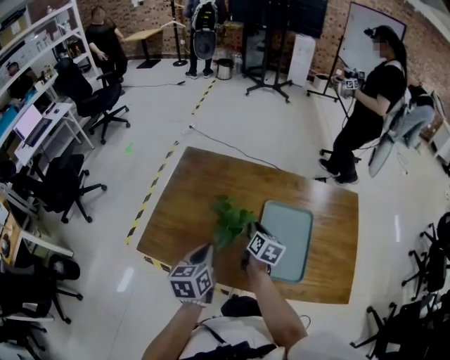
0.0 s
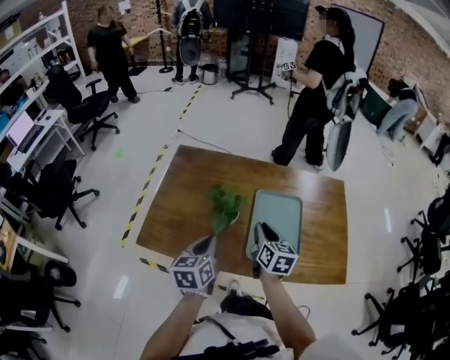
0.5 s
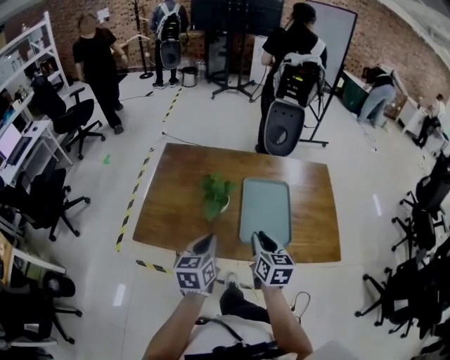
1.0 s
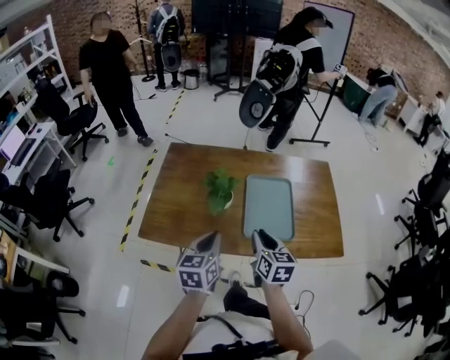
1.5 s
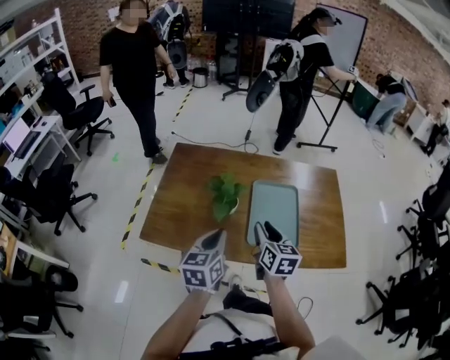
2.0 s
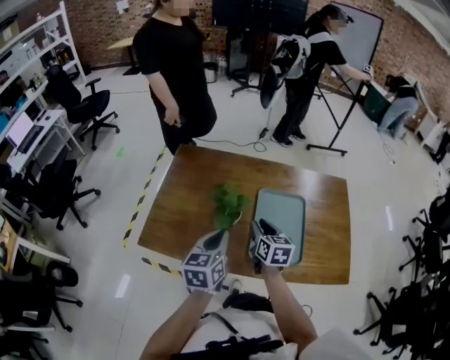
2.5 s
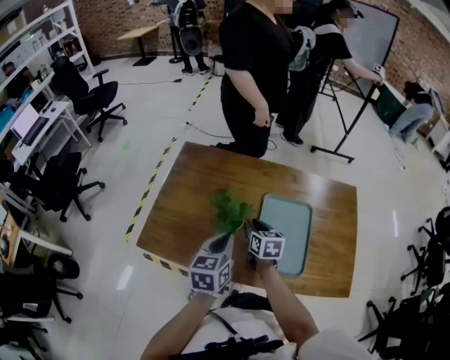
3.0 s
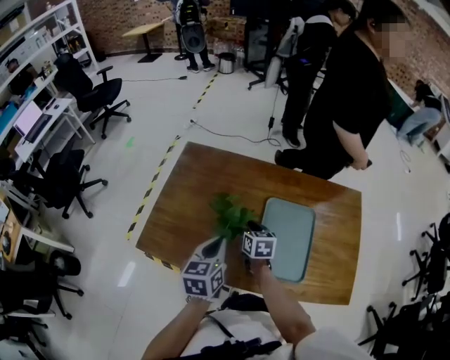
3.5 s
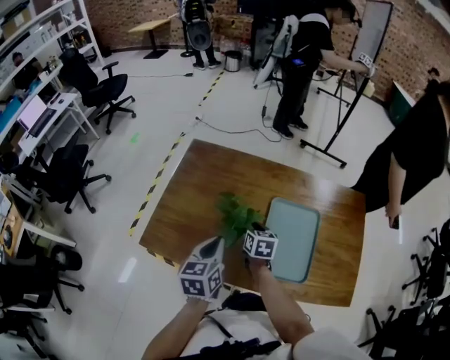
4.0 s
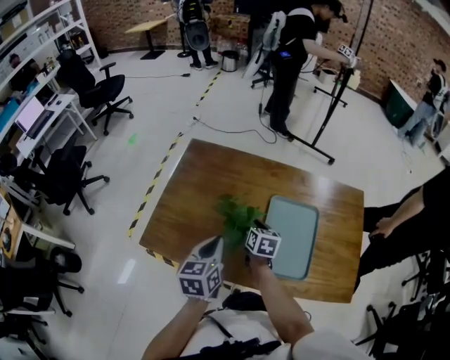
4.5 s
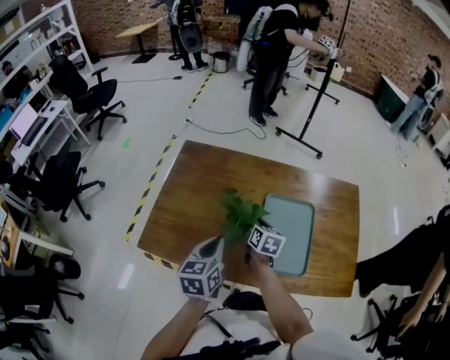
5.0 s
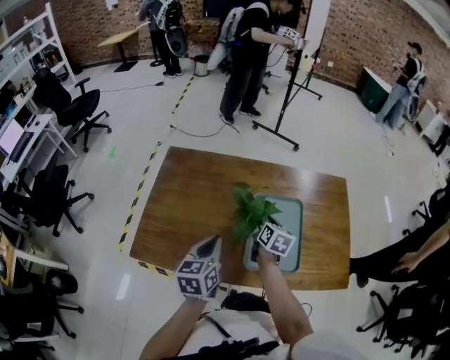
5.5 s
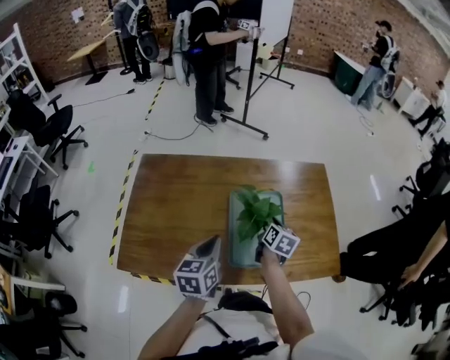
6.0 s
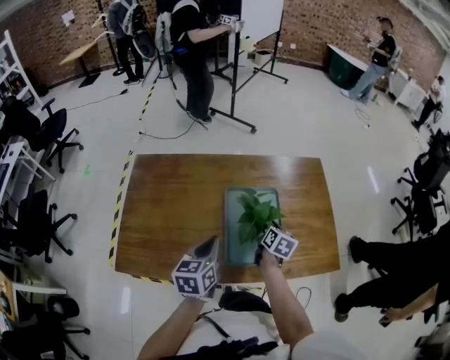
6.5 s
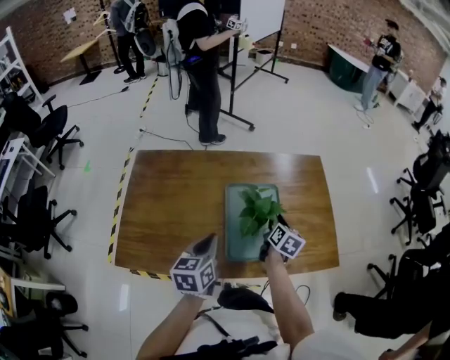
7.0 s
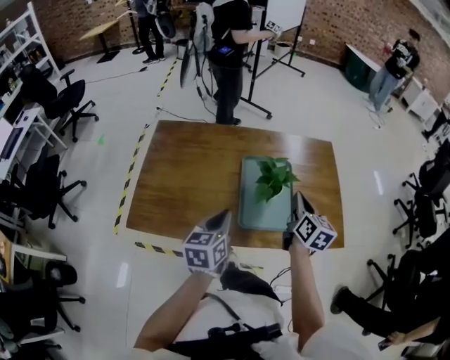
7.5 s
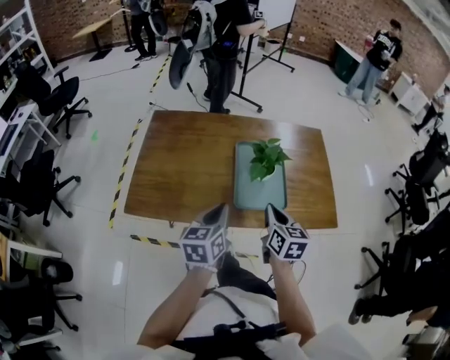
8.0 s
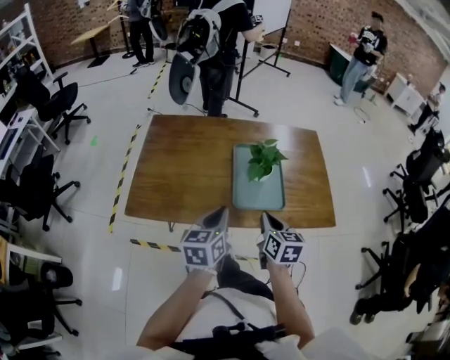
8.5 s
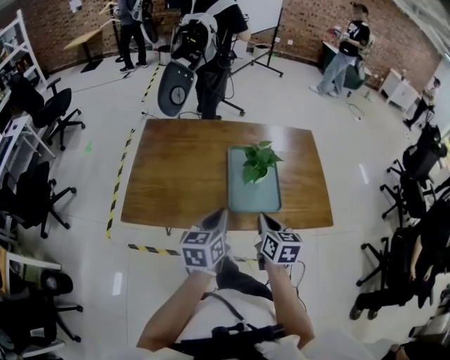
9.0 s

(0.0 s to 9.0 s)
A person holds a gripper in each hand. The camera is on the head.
0.0 s - 2.0 s: The left gripper heads backward, upward and to the right, covering about 10 cm. Meanwhile the right gripper heads backward and upward, covering about 20 cm.
2.0 s - 4.5 s: The right gripper moves forward and downward, approximately 25 cm, and closes up, while the left gripper shifts some 10 cm forward and downward.
4.5 s - 7.0 s: The right gripper heads to the right, covering roughly 25 cm, rotates roughly 30 degrees, and opens; the left gripper goes roughly 10 cm to the right.
7.0 s - 9.0 s: The right gripper goes approximately 25 cm backward, rotates approximately 30 degrees, and closes. The left gripper shifts approximately 15 cm backward.

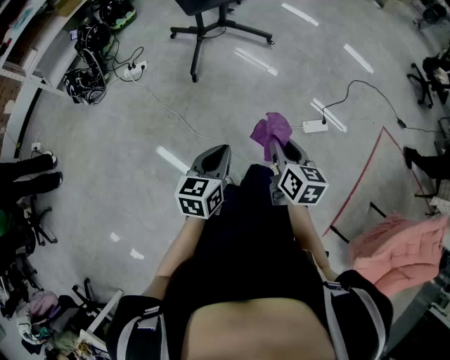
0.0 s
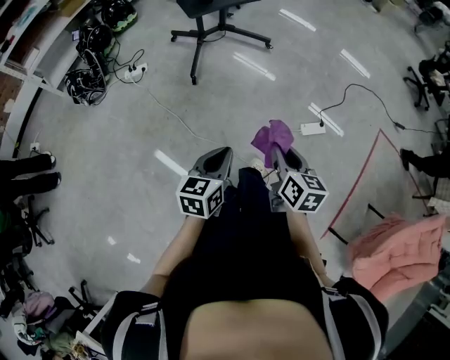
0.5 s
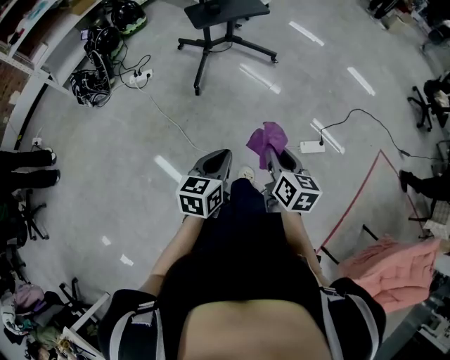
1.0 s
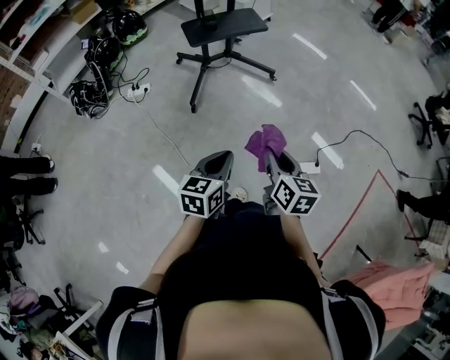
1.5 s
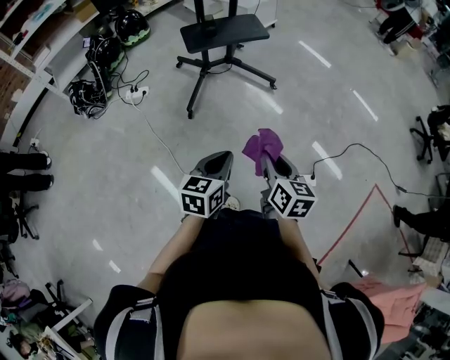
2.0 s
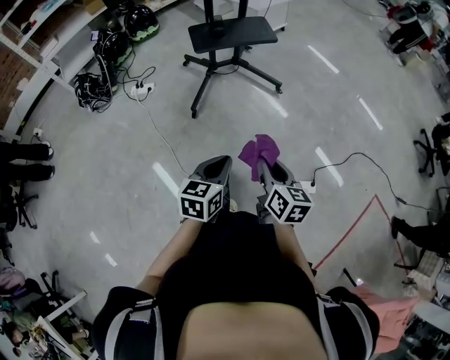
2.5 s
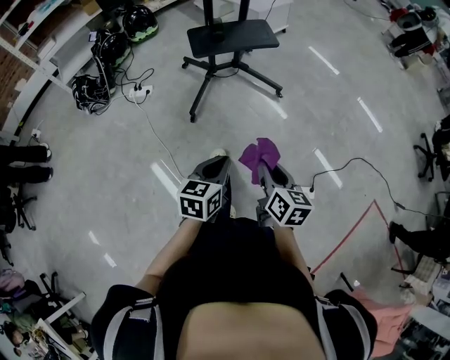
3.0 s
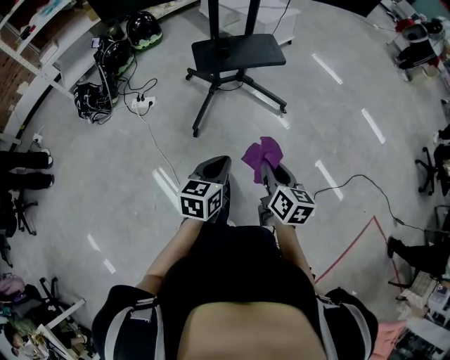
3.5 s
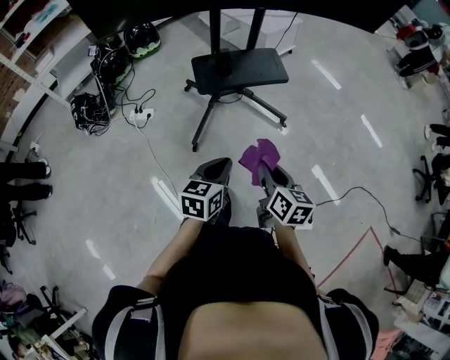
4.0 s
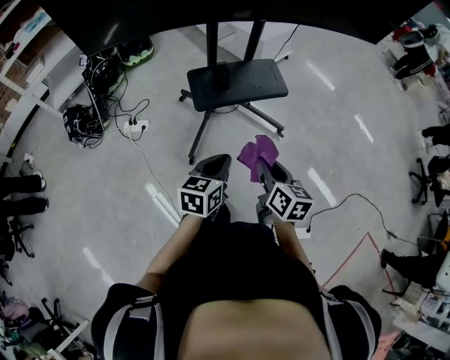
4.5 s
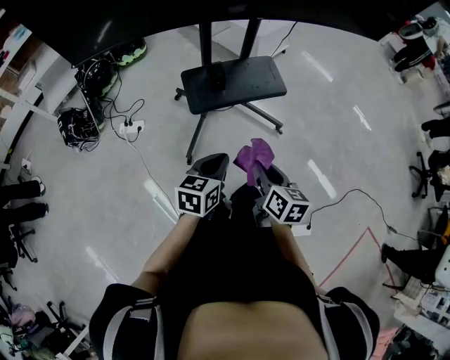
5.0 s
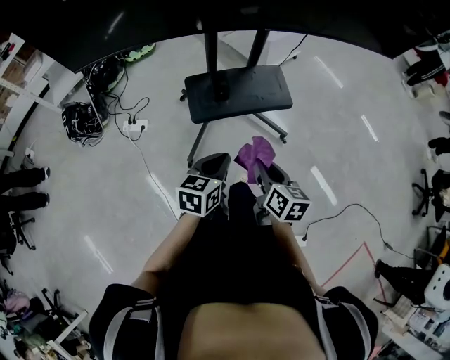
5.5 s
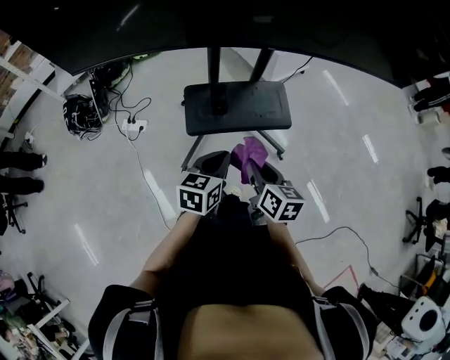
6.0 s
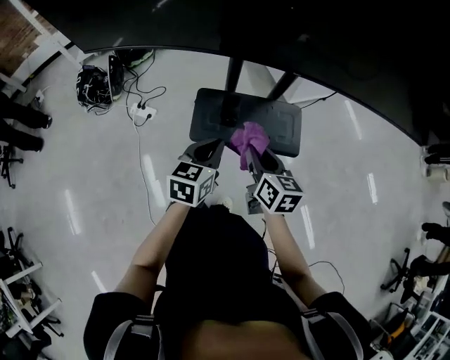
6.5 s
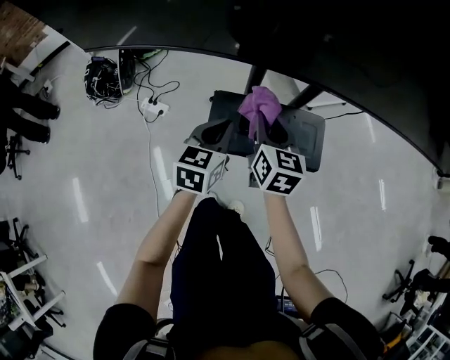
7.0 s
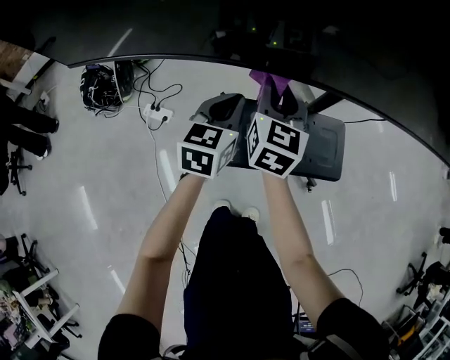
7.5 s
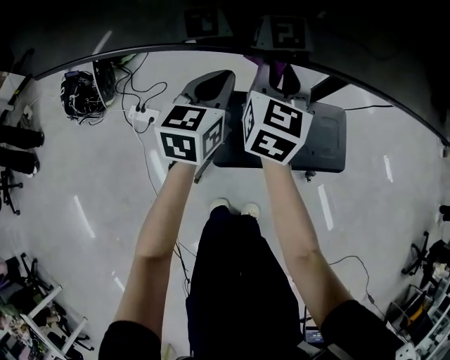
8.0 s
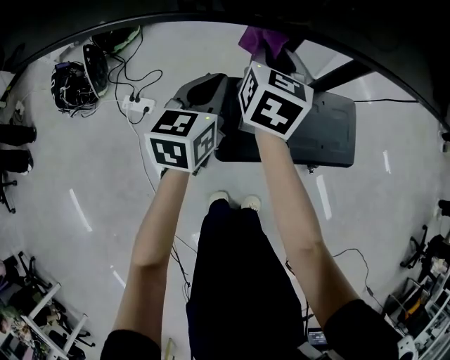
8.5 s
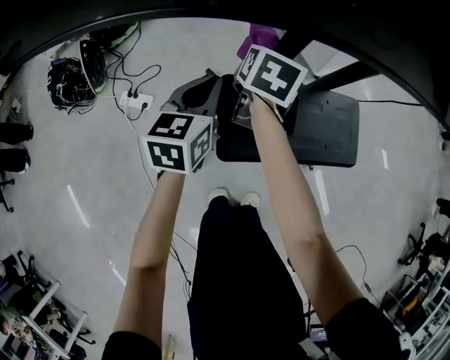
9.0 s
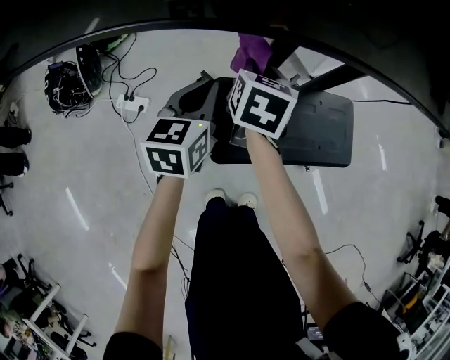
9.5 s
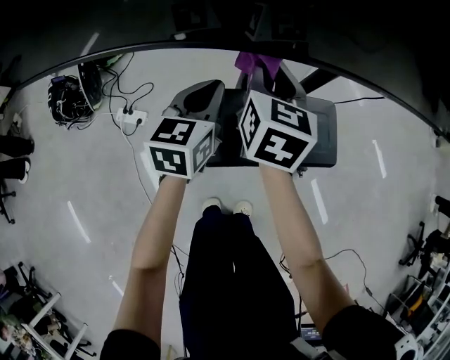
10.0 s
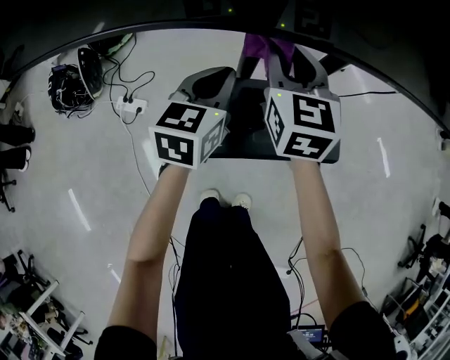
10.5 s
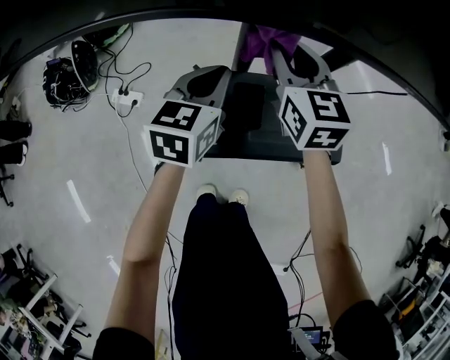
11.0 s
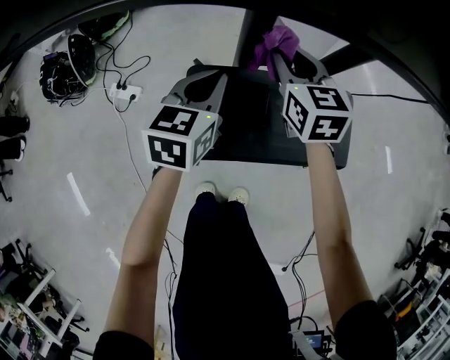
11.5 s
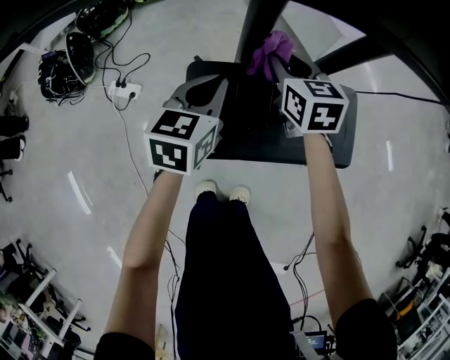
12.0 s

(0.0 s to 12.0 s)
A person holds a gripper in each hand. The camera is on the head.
0.0 s - 2.0 s: Both grippers travel together forward, roughly 20 cm.
2.0 s - 4.0 s: The grippers both shift forward by some 25 cm.
4.0 s - 6.0 s: The two grippers go about 30 cm forward.
6.0 s - 8.0 s: Both grippers move forward and to the left, about 40 cm. The right gripper rotates about 40 degrees; the left gripper swivels approximately 20 degrees.
8.0 s - 10.0 s: The left gripper goes downward and returns, roughly 10 cm each way. Meanwhile the right gripper reaches approximately 15 cm downward, then returns.
10.0 s - 12.0 s: The two grippers go about 15 cm downward. The right gripper rotates some 30 degrees.

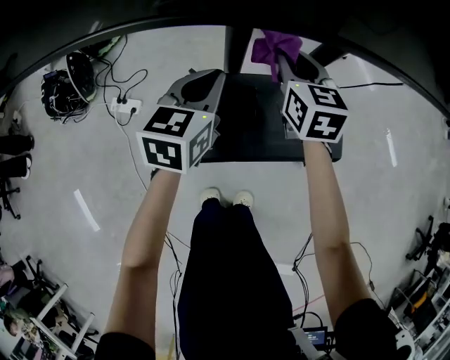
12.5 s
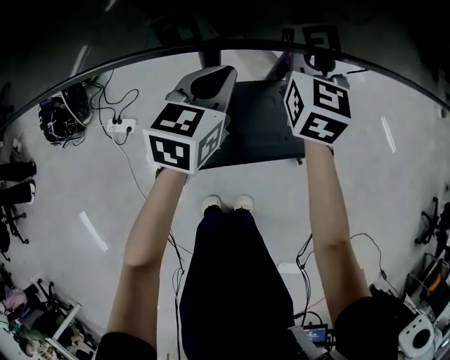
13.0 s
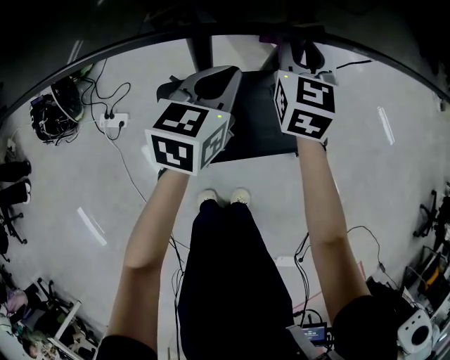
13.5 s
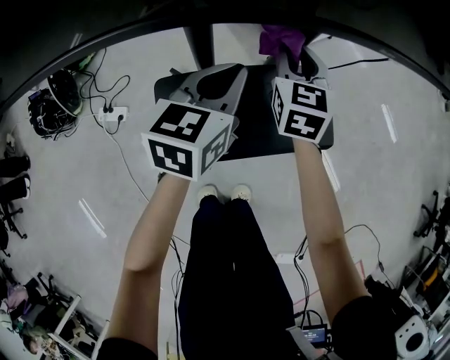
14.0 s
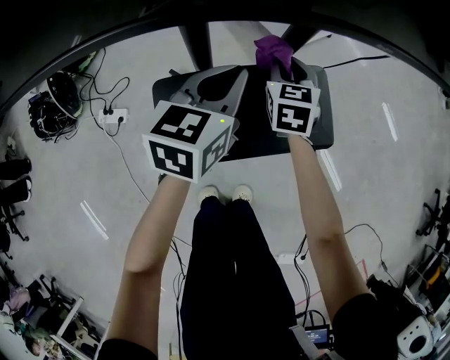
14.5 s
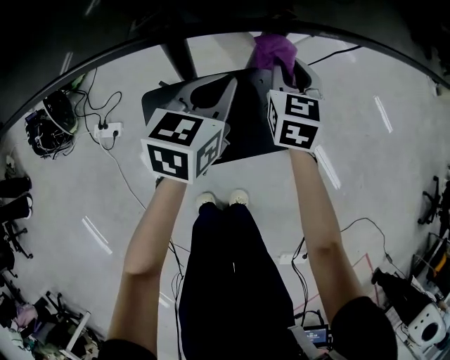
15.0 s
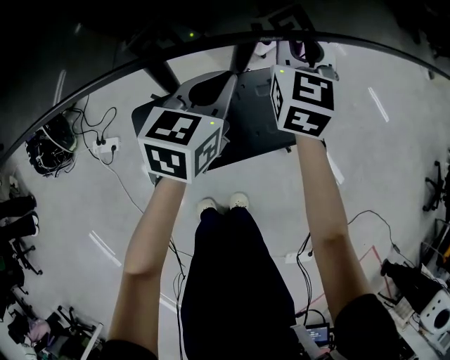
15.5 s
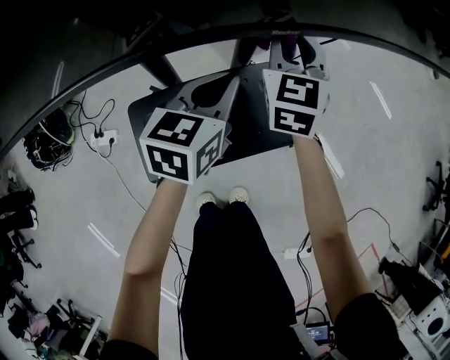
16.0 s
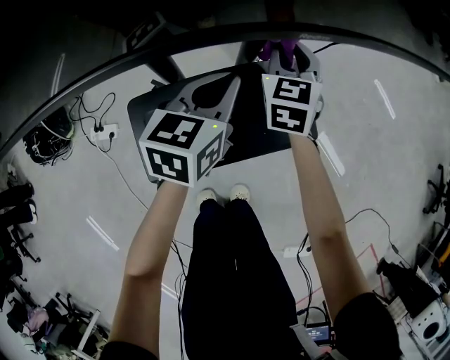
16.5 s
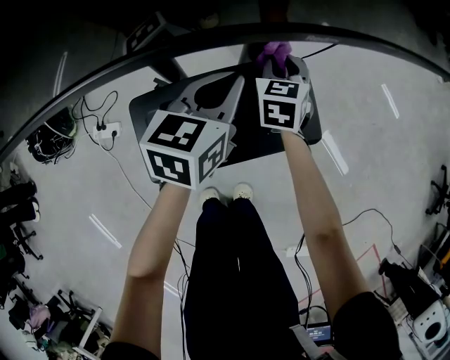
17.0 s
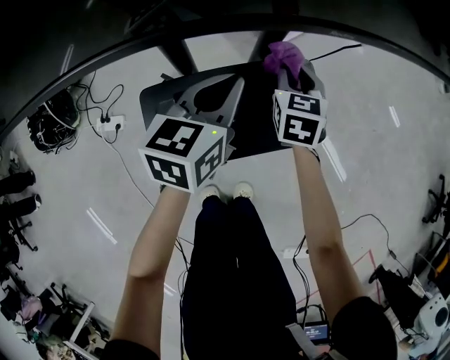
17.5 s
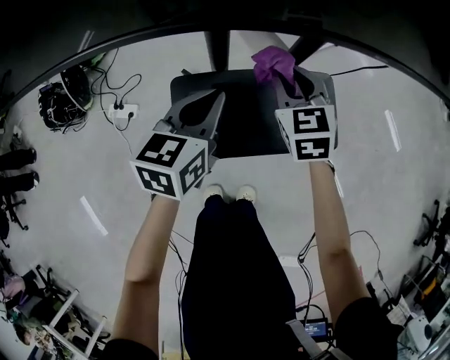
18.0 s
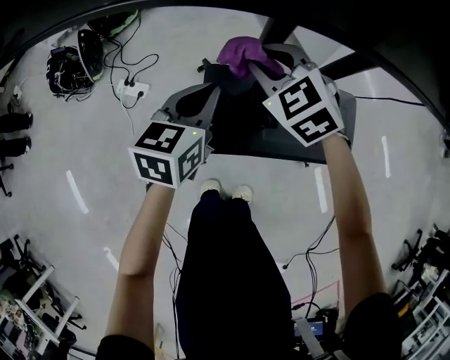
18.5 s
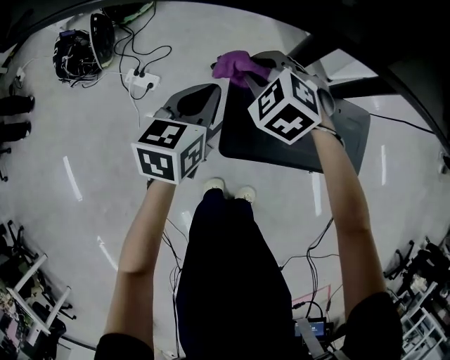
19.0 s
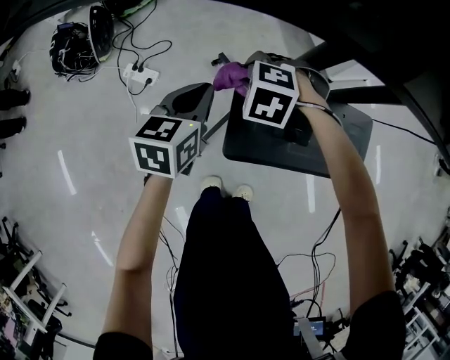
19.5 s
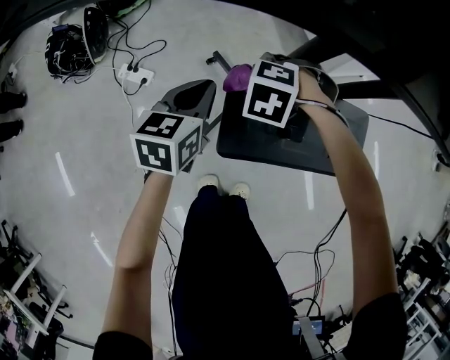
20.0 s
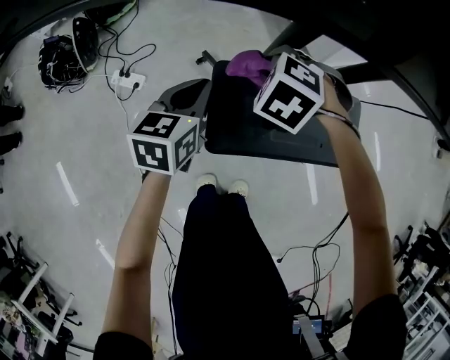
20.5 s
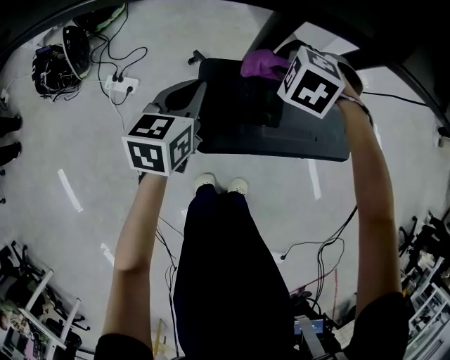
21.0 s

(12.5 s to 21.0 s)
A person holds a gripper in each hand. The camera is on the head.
12.5 s - 14.5 s: The right gripper shifts approximately 15 cm to the right and downward. The left gripper goes roughly 10 cm to the right.
14.5 s - 16.5 s: The two grippers go about 5 cm to the right. The right gripper moves roughly 20 cm upward and comes back.
16.5 s - 19.0 s: The left gripper ends up some 30 cm from where it was, and rotates some 30 degrees. Meanwhile the right gripper goes up and down, some 10 cm each way, reversing 2 times, and angles its fingers downward, by approximately 30 degrees.
19.0 s - 21.0 s: The right gripper ends up about 15 cm from where it was, and turns by approximately 20 degrees, while the left gripper moves approximately 5 cm.
